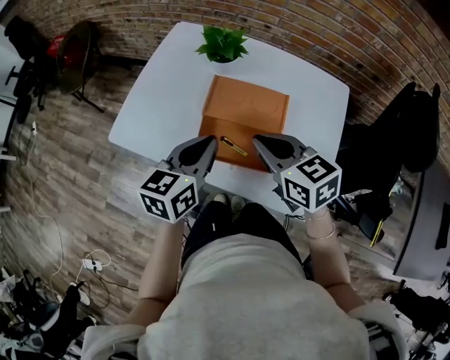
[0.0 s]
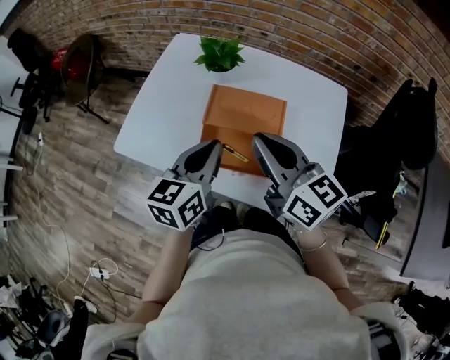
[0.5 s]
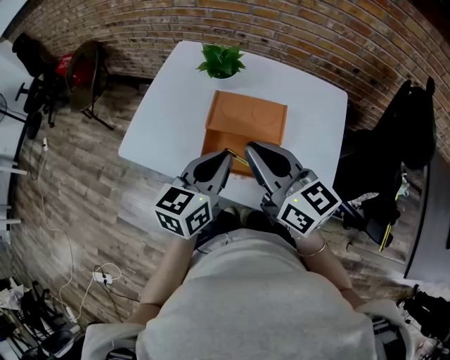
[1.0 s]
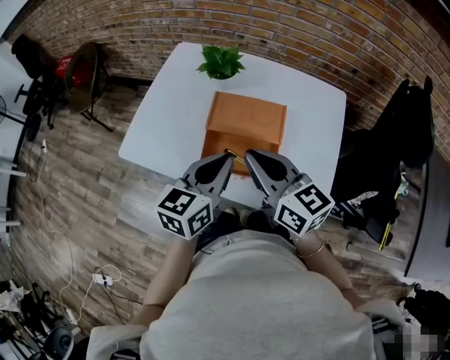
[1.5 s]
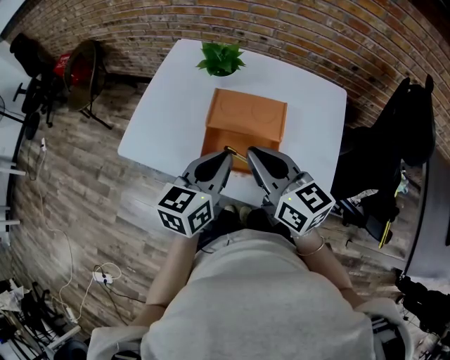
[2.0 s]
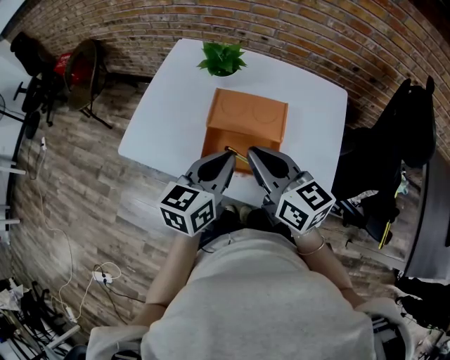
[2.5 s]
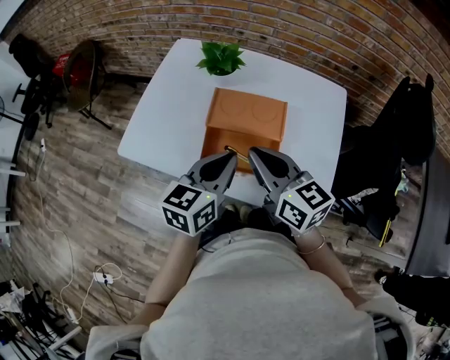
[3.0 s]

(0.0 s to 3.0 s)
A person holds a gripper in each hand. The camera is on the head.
0.0 s - 1.5 s: The right gripper changes place by approximately 5 cm, and turns by about 20 degrees.
1.5 s - 3.0 s: The grippers make only small movements.

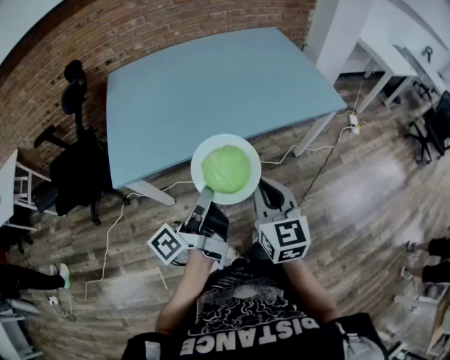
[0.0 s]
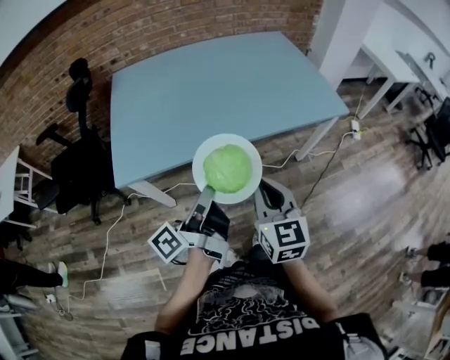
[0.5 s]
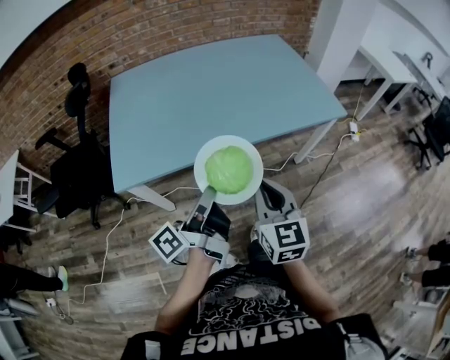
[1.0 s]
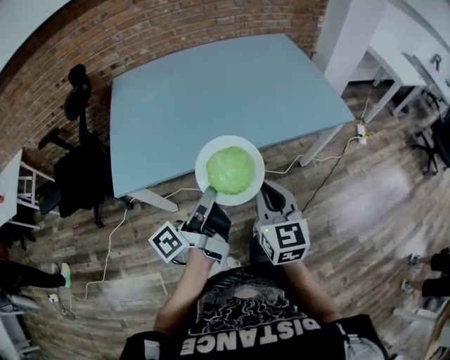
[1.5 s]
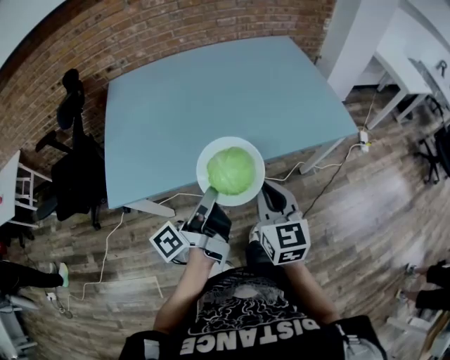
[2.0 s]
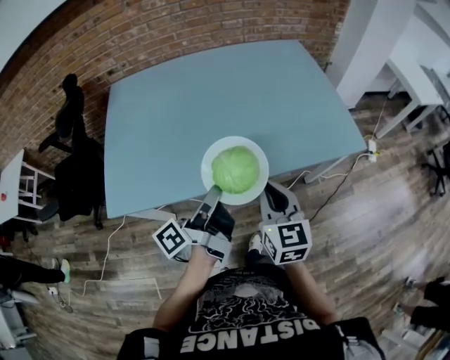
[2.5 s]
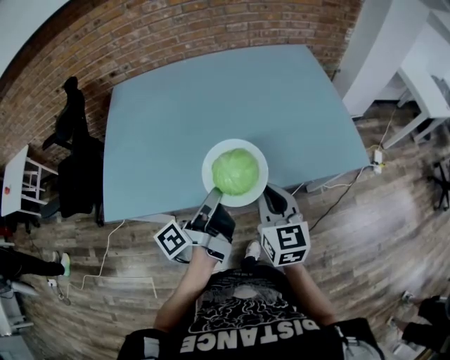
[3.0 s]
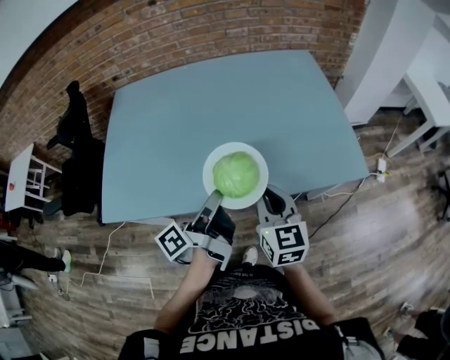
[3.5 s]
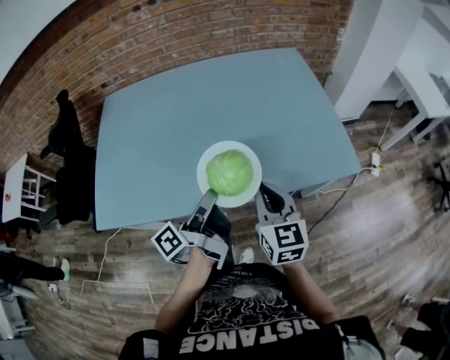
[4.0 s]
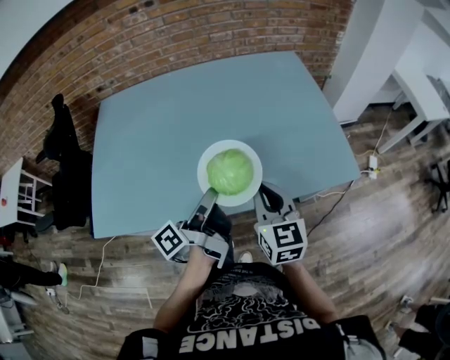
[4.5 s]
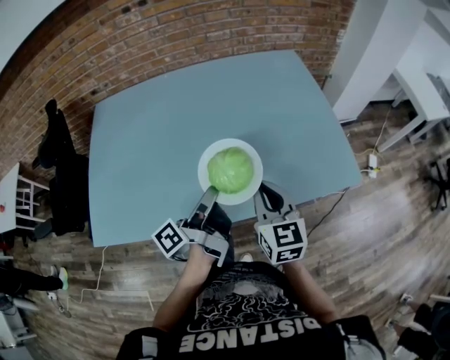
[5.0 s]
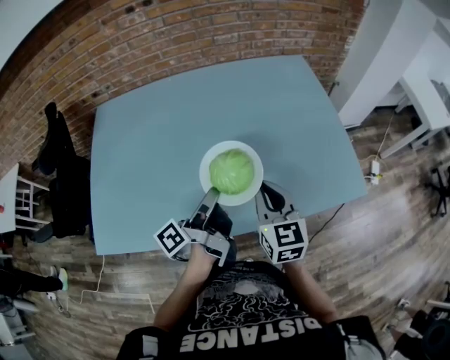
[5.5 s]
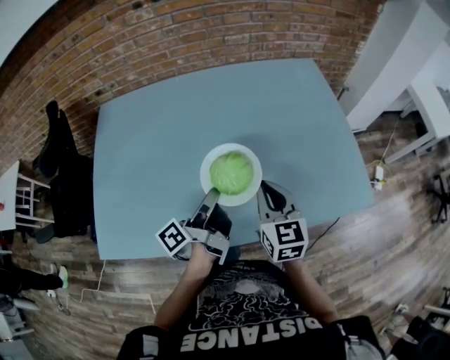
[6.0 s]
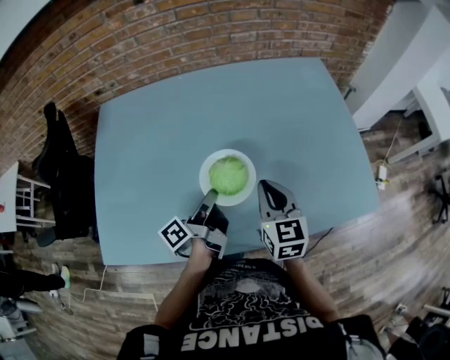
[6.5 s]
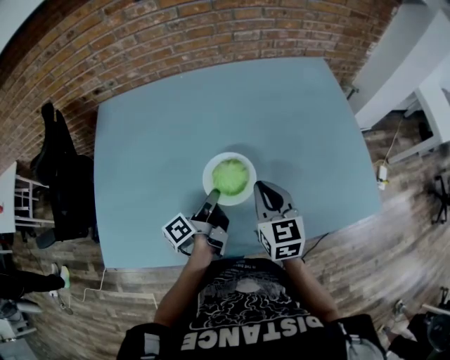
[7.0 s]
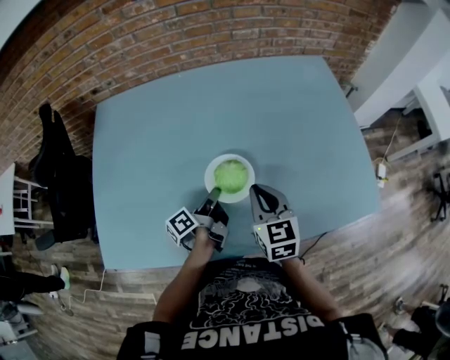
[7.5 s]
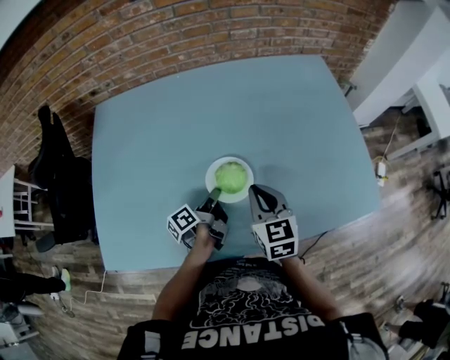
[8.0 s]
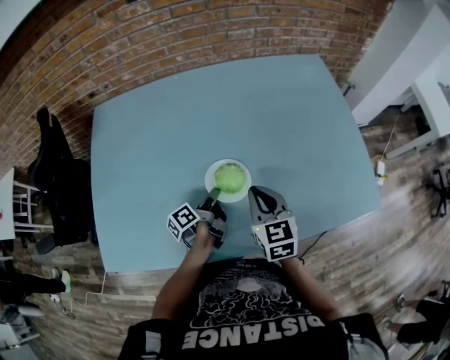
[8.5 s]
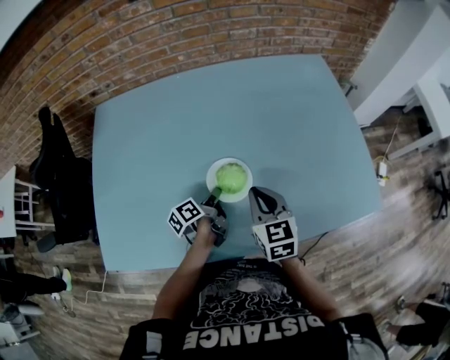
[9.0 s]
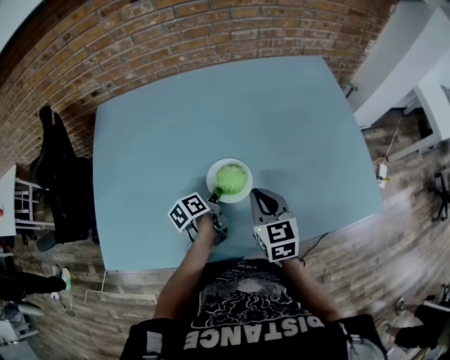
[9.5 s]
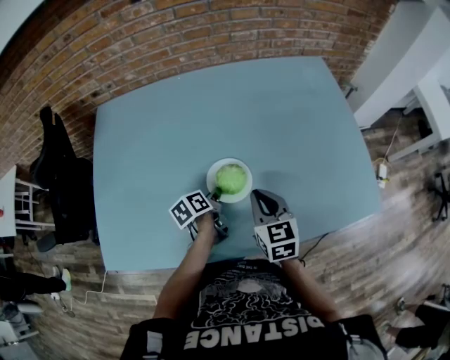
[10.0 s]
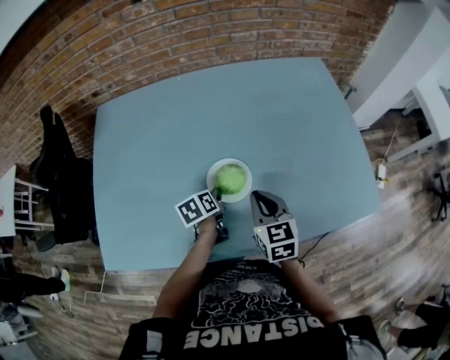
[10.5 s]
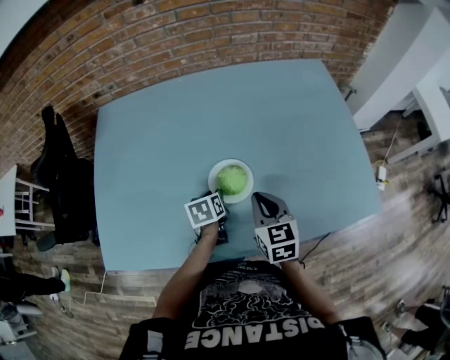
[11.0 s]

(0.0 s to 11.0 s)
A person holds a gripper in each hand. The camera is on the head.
0.0 s - 2.0 s: The right gripper moves roughly 10 cm.
2.0 s - 3.5 s: The right gripper shifts by approximately 15 cm.
3.5 s - 5.5 s: The right gripper ends up roughly 10 cm from where it was.
5.5 s - 7.5 s: The right gripper ends up some 10 cm from where it was.

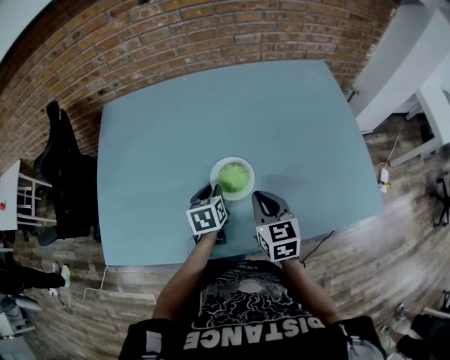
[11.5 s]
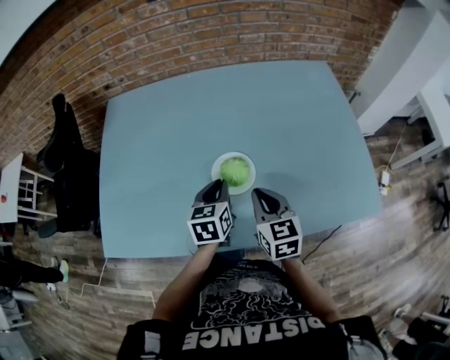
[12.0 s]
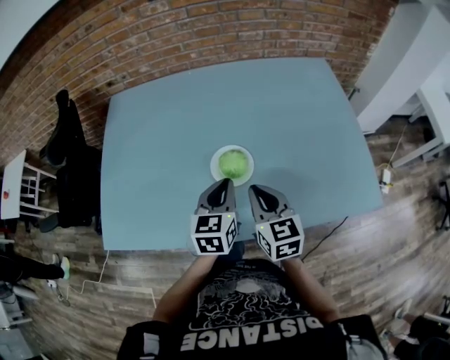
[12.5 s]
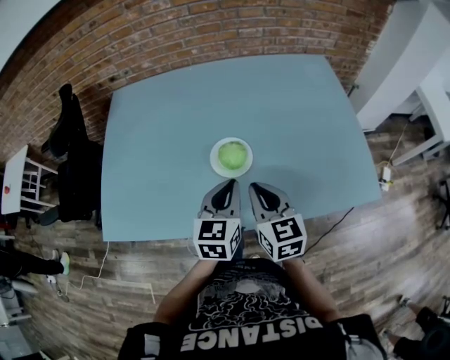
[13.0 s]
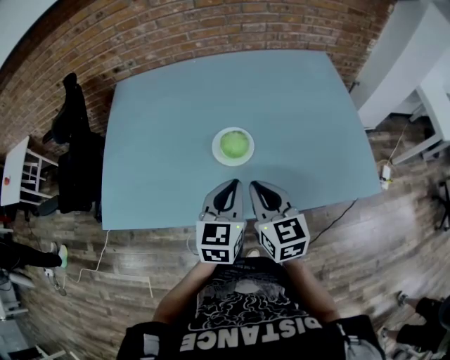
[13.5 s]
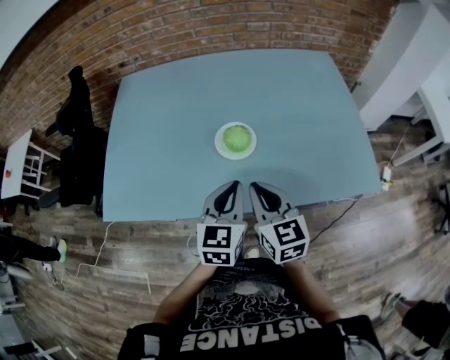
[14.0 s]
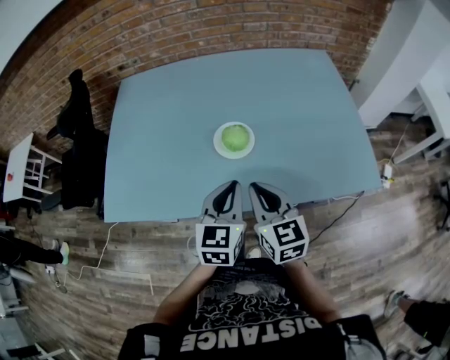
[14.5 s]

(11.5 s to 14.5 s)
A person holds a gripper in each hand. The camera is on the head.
11.5 s - 13.0 s: The right gripper changes place by approximately 10 cm.
13.0 s - 14.5 s: The right gripper changes place by some 5 cm.

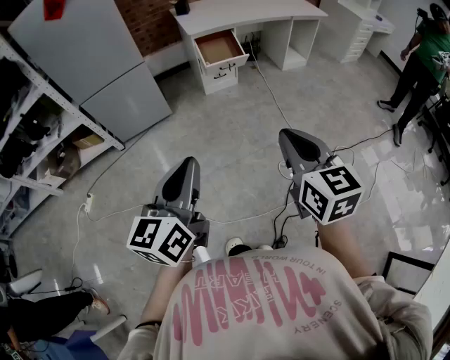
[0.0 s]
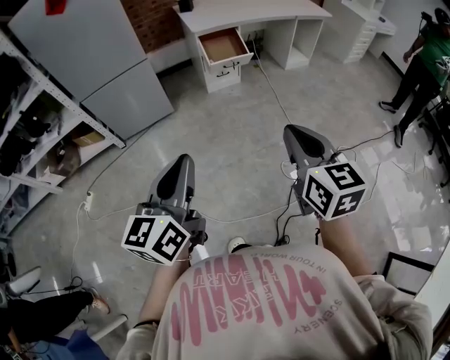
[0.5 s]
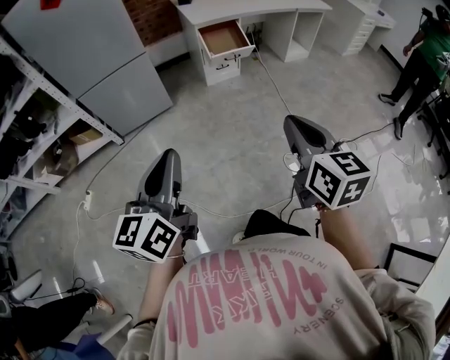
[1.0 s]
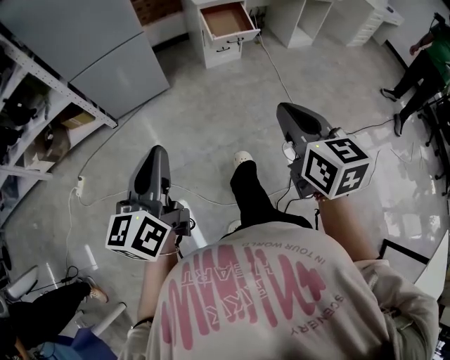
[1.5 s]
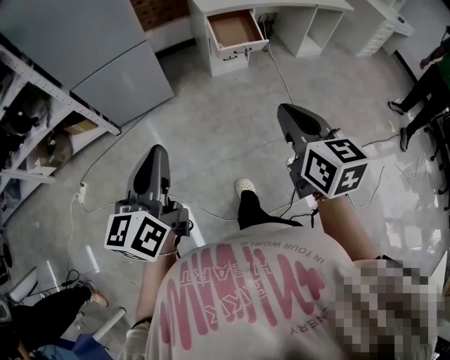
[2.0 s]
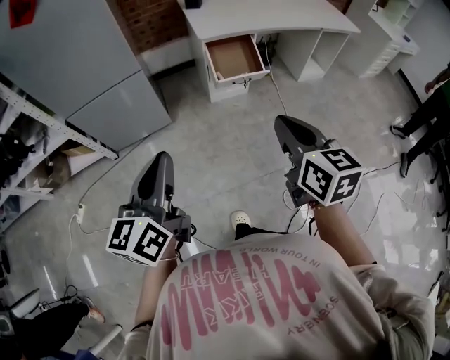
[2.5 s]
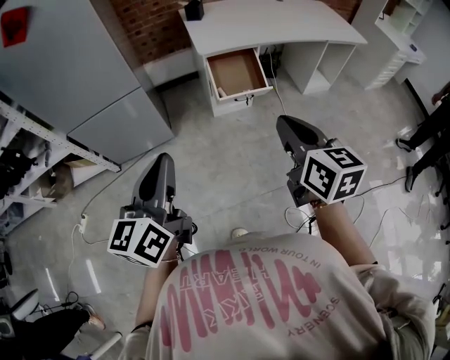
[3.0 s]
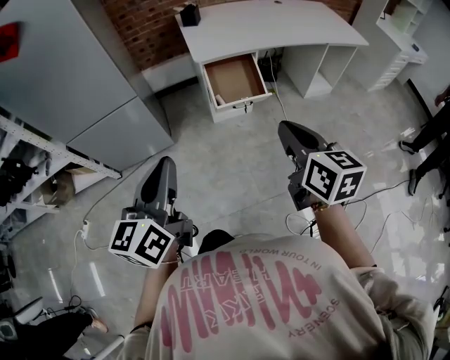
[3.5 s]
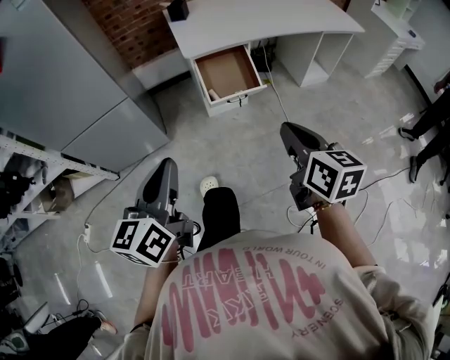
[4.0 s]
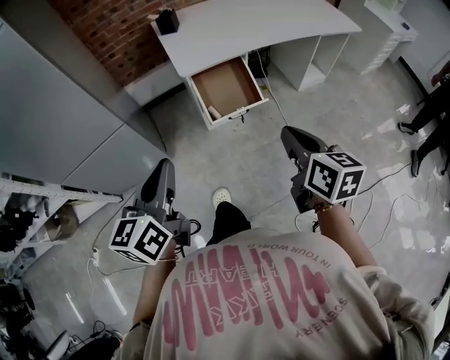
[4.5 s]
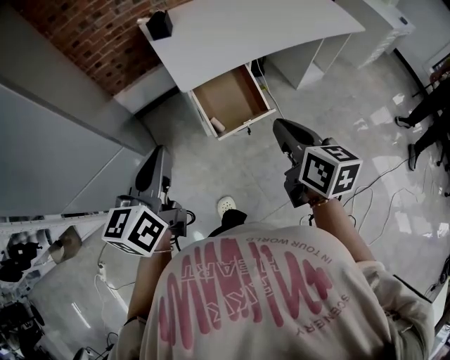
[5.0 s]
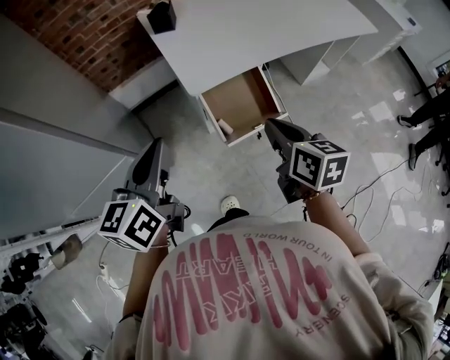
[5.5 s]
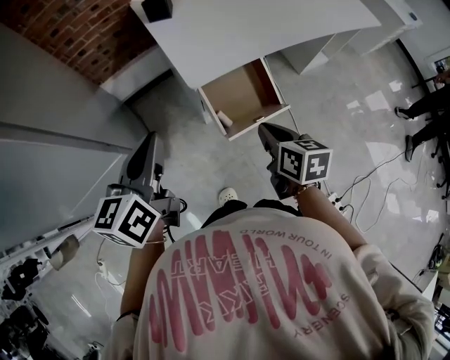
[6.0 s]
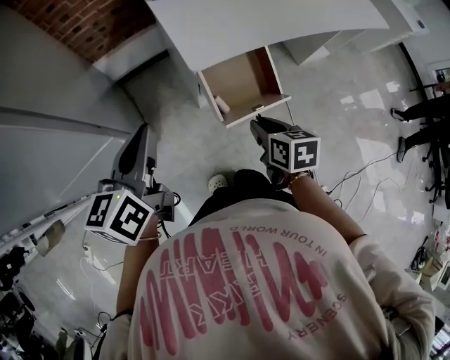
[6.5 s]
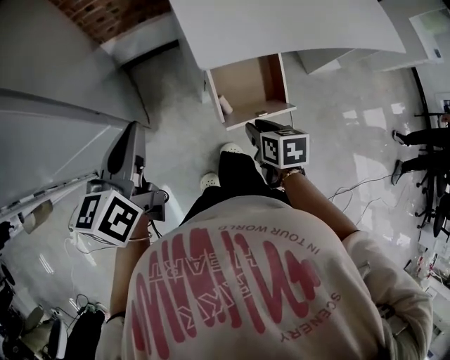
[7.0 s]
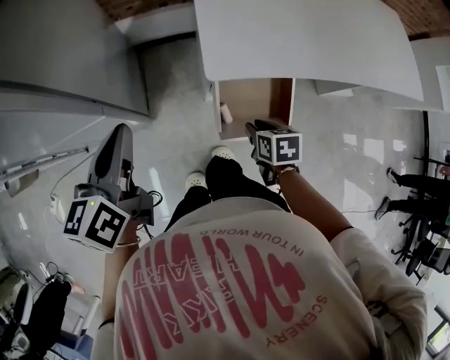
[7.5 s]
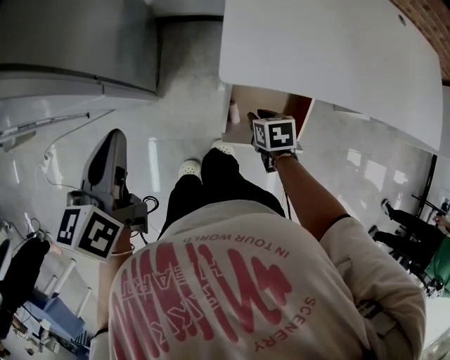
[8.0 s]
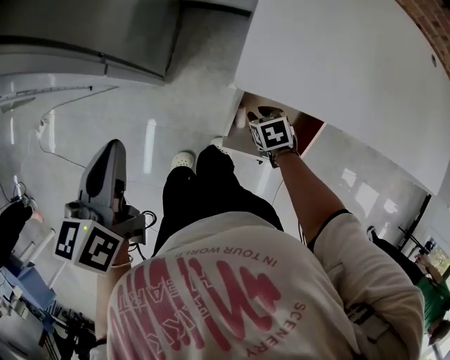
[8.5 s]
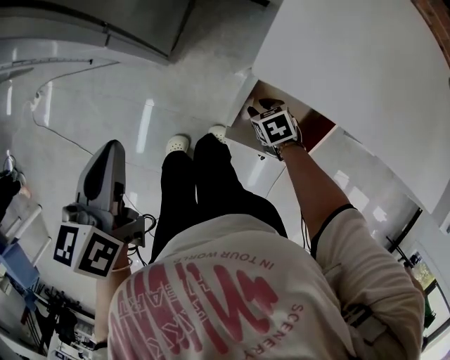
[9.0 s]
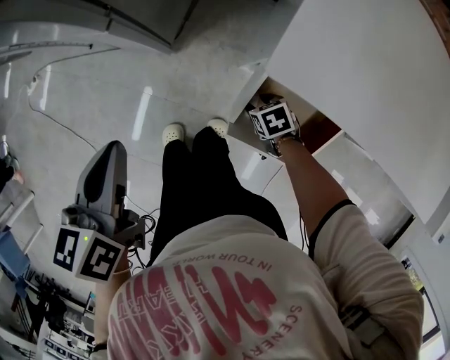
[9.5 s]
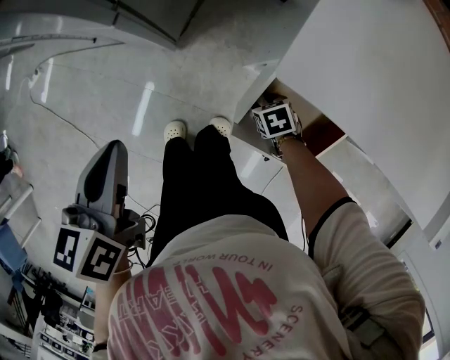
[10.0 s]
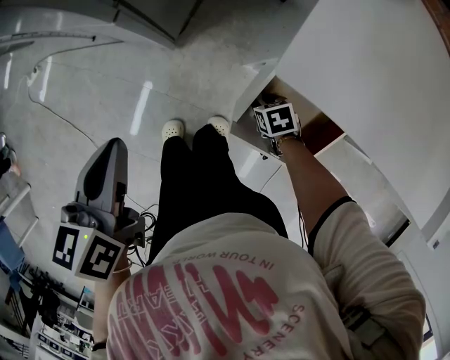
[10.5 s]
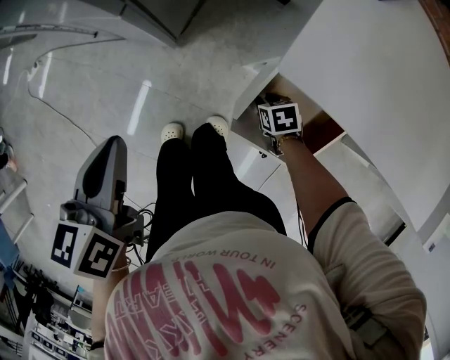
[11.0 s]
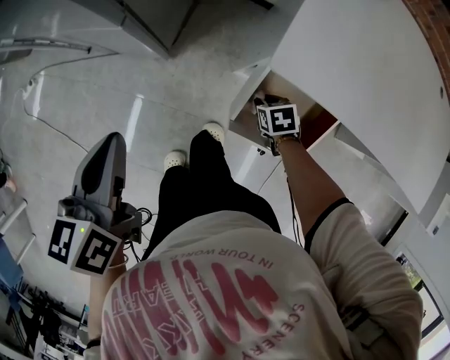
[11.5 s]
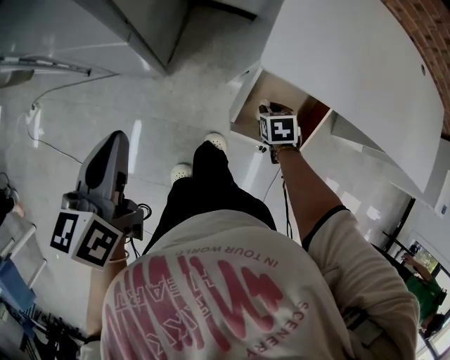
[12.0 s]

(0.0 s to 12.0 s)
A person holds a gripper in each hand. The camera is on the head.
0.0 s - 2.0 s: Both grippers move forward and to the left, roughly 20 cm.
2.0 s - 4.0 s: Both grippers move forward and to the right, roughly 35 cm.
4.0 s - 6.0 s: The right gripper travels forward, downward and to the left by some 40 cm. Meanwhile the left gripper shifts some 40 cm forward.
6.0 s - 8.0 s: The left gripper moves roughly 10 cm, and changes its angle by approximately 40 degrees, while the right gripper heads downward, covering roughly 20 cm, rotates roughly 50 degrees, and opens.
8.0 s - 10.0 s: The right gripper goes roughly 15 cm downward, and swivels about 40 degrees, while the left gripper heads downward, covering roughly 10 cm, and changes its angle by approximately 20 degrees.
10.0 s - 12.0 s: The right gripper travels upward by approximately 10 cm, and rotates some 20 degrees. Meanwhile the left gripper shifts roughly 5 cm upward.
